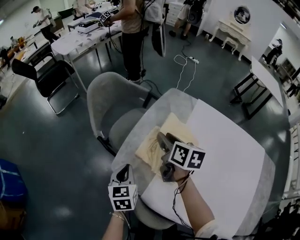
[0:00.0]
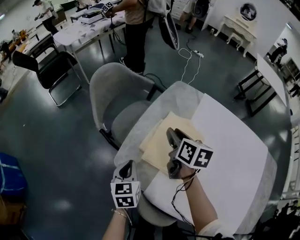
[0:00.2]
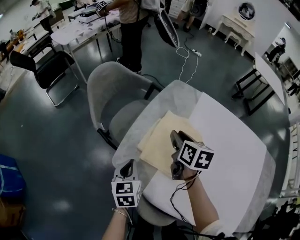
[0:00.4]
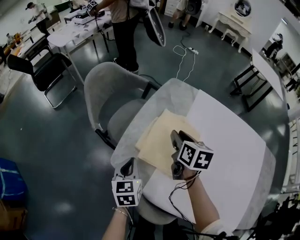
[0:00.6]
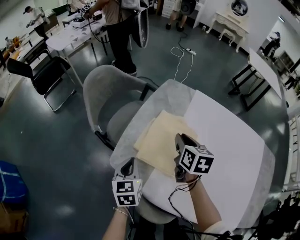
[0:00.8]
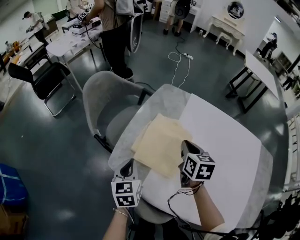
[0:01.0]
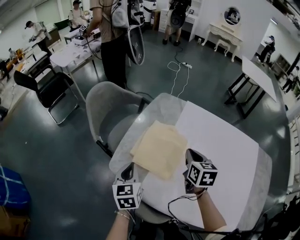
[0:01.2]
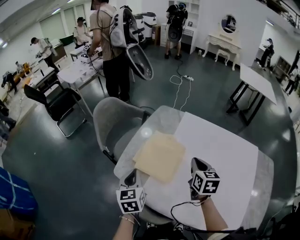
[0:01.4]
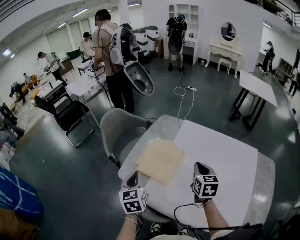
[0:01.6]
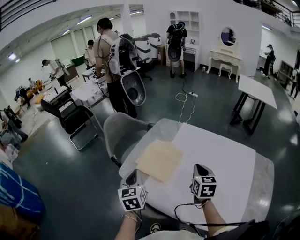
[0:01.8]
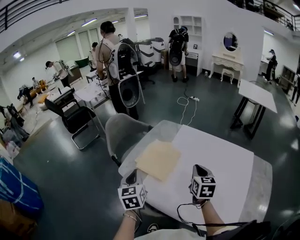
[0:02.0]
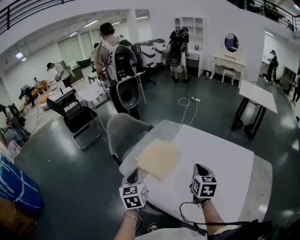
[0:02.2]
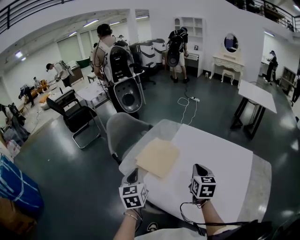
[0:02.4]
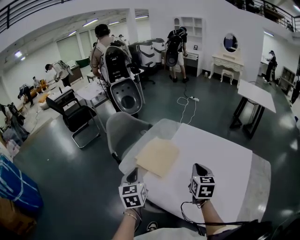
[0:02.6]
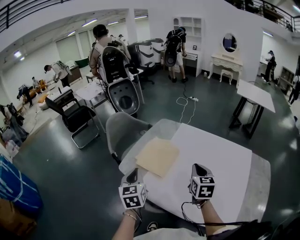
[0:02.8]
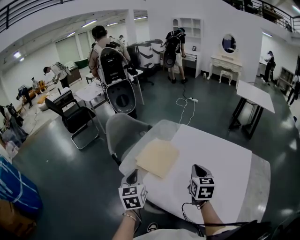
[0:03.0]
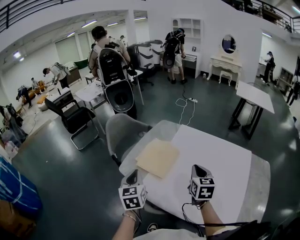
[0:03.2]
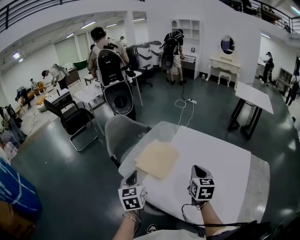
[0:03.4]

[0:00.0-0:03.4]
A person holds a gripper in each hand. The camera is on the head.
0:00.0 to 0:01.6: The left gripper goes some 20 cm upward, backward and to the right; the right gripper travels to the right, backward and upward by roughly 30 cm, swivels about 30 degrees, and closes up.
0:01.6 to 0:03.4: Both grippers travel together backward, some 10 cm.

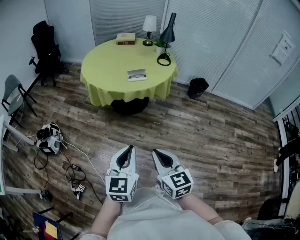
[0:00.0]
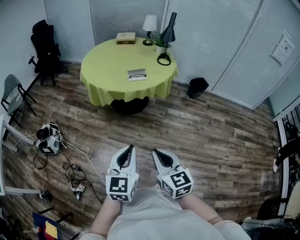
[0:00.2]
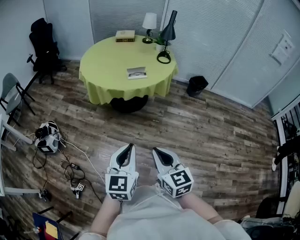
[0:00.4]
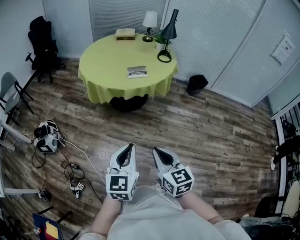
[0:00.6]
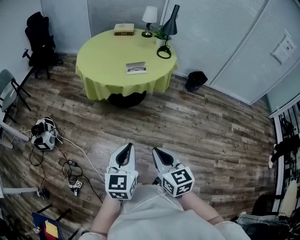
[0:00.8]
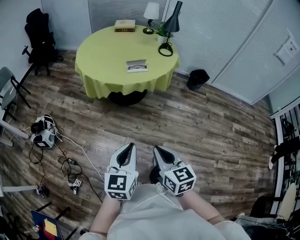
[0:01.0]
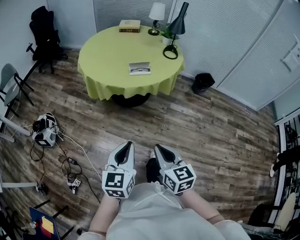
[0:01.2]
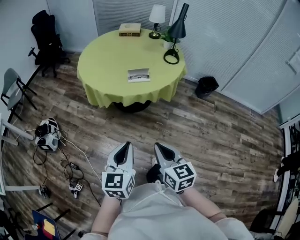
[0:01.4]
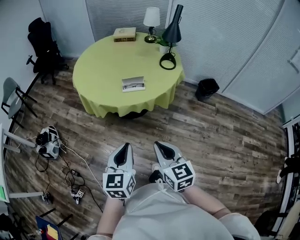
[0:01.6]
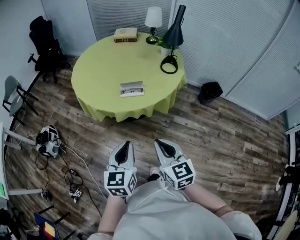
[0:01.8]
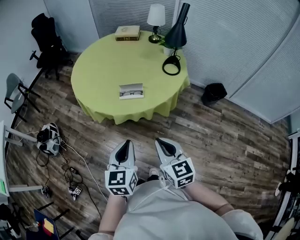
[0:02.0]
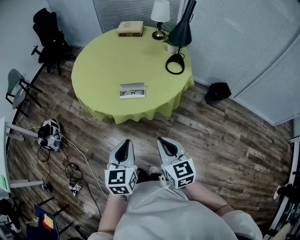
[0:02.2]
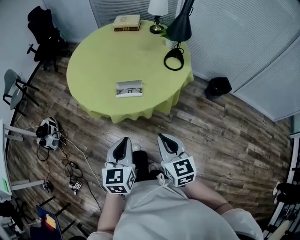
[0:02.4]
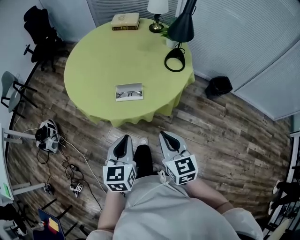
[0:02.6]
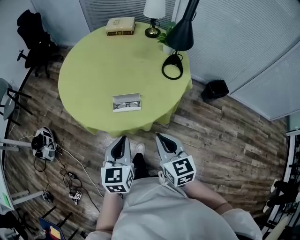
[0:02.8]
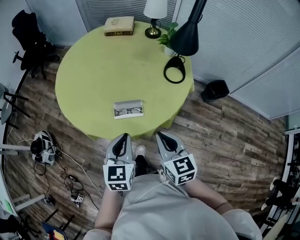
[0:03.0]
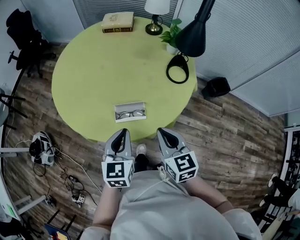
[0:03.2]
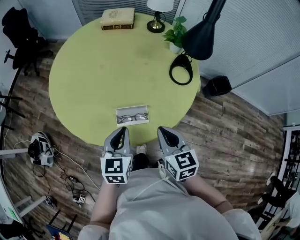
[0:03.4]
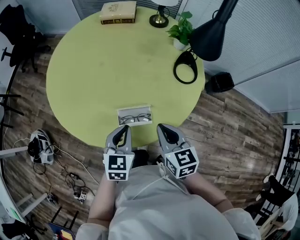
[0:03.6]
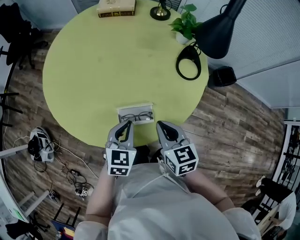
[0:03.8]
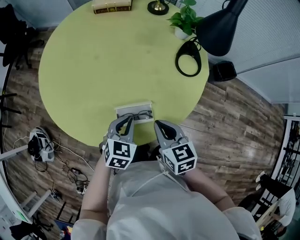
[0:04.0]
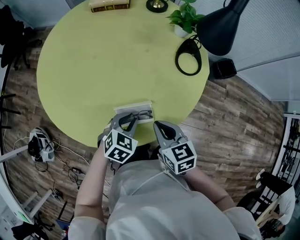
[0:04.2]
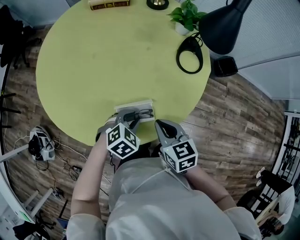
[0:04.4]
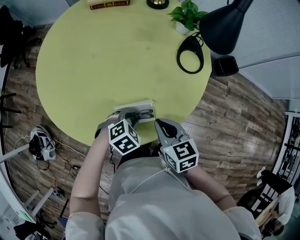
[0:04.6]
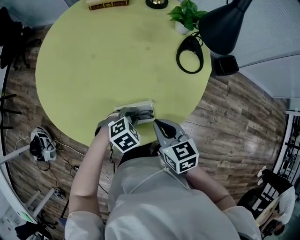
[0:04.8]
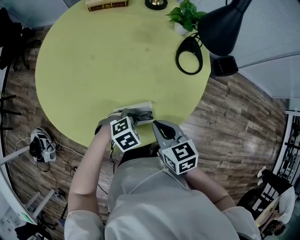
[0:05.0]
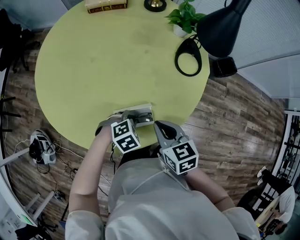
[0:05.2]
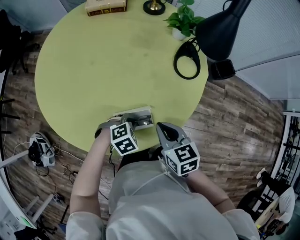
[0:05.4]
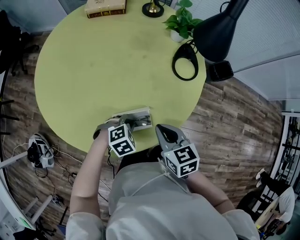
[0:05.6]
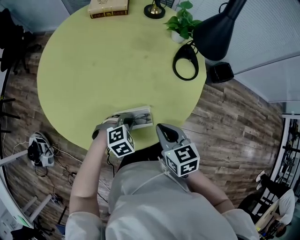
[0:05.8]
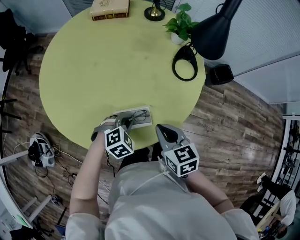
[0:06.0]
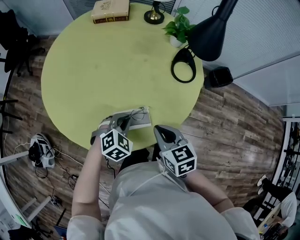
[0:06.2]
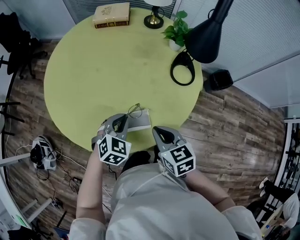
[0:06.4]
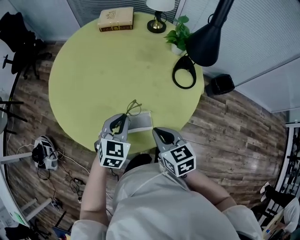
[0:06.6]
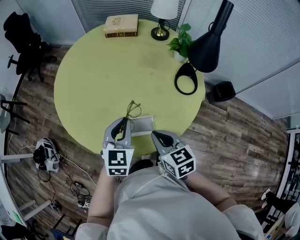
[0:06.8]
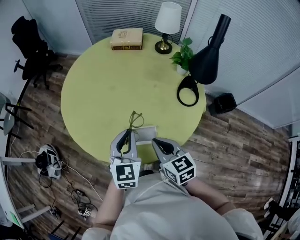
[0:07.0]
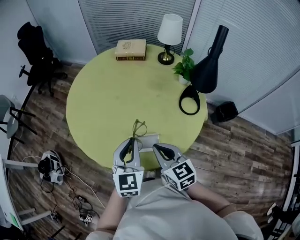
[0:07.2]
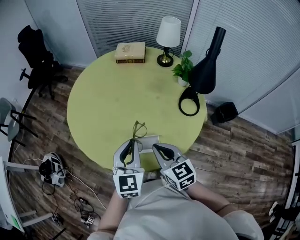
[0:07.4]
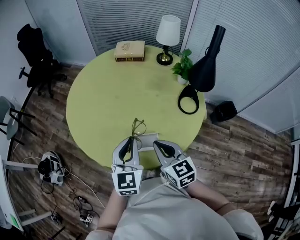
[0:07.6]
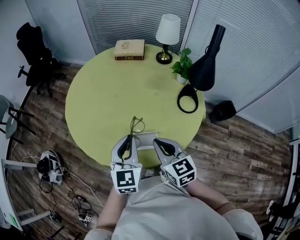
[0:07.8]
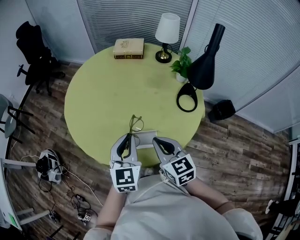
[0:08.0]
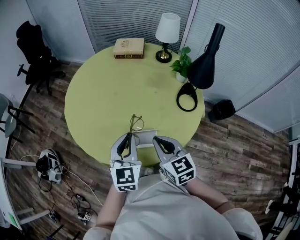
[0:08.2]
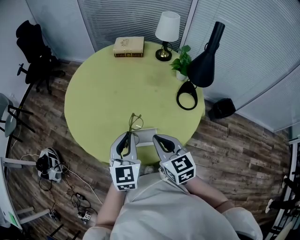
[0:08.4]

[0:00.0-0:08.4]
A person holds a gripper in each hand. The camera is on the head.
0:00.0 to 0:01.4: The two grippers go approximately 15 cm forward.
0:01.4 to 0:02.8: The grippers both shift forward and to the right by some 35 cm.
0:02.8 to 0:04.2: The two grippers go approximately 25 cm forward and downward. The left gripper rotates some 50 degrees.
0:04.2 to 0:05.6: The left gripper travels downward by approximately 5 cm, and turns by roughly 30 degrees.
0:05.6 to 0:07.0: The right gripper is displaced upward by some 10 cm. The left gripper travels upward by roughly 25 cm, and tips its fingers upward by approximately 50 degrees.
0:07.0 to 0:08.4: The grippers move only a little.

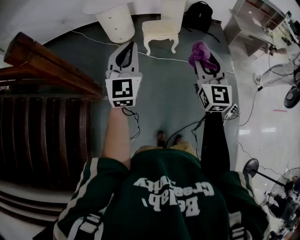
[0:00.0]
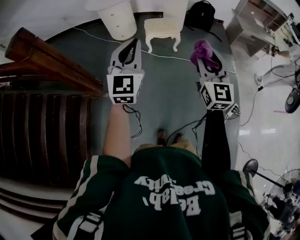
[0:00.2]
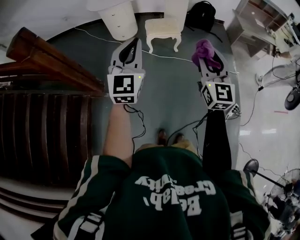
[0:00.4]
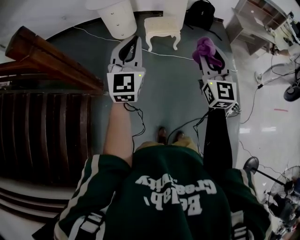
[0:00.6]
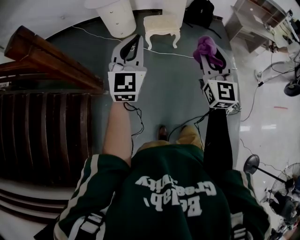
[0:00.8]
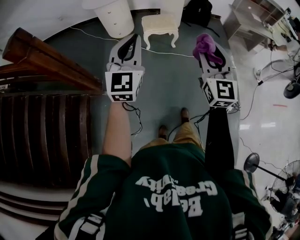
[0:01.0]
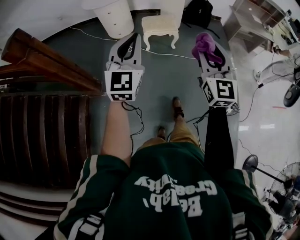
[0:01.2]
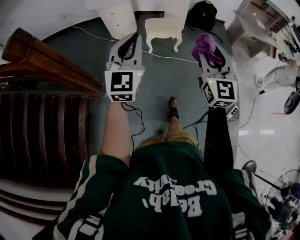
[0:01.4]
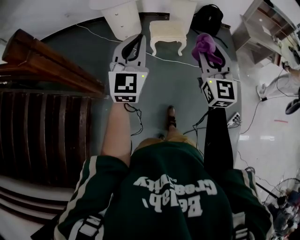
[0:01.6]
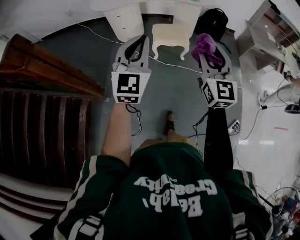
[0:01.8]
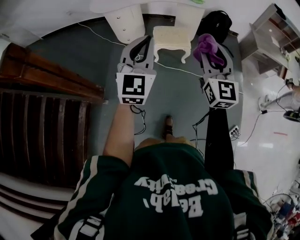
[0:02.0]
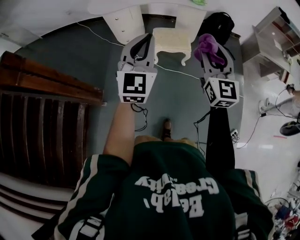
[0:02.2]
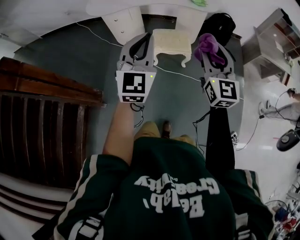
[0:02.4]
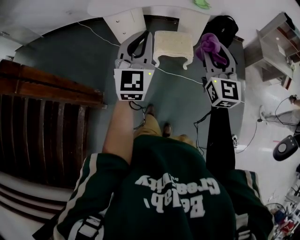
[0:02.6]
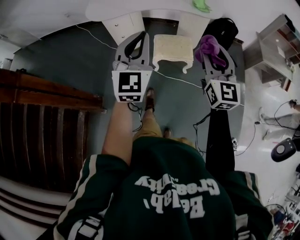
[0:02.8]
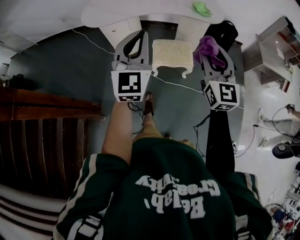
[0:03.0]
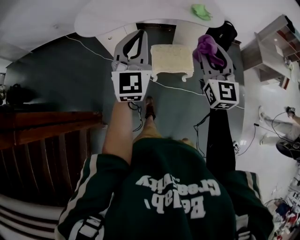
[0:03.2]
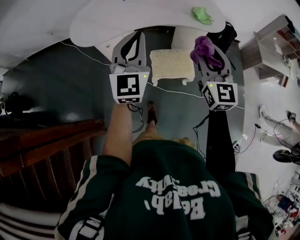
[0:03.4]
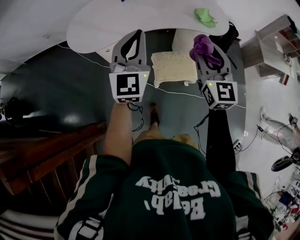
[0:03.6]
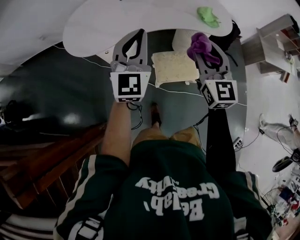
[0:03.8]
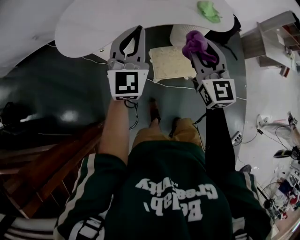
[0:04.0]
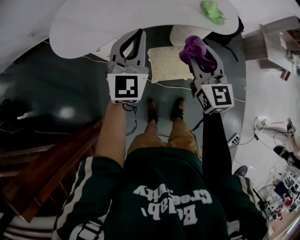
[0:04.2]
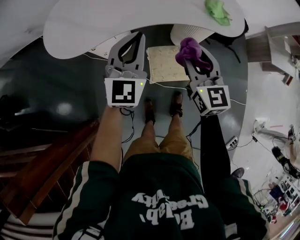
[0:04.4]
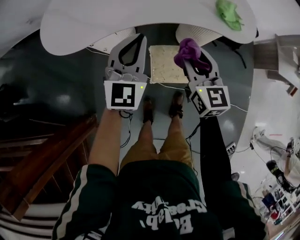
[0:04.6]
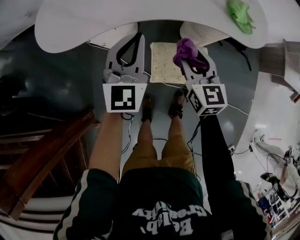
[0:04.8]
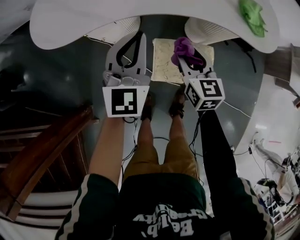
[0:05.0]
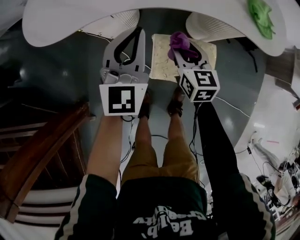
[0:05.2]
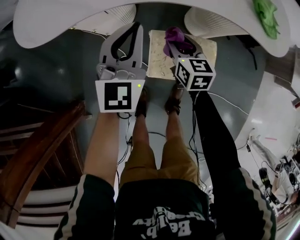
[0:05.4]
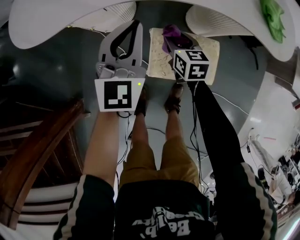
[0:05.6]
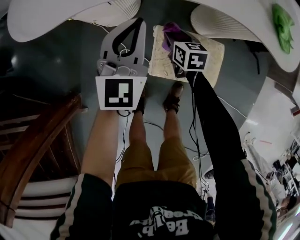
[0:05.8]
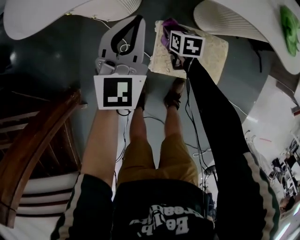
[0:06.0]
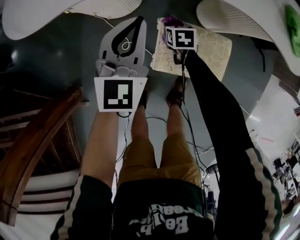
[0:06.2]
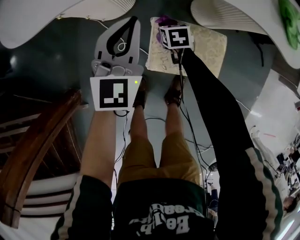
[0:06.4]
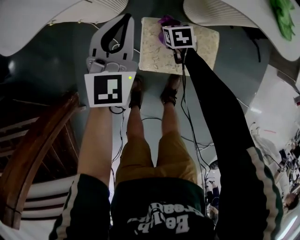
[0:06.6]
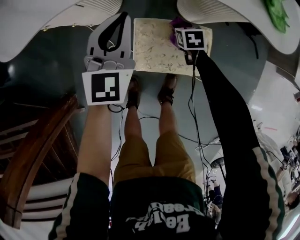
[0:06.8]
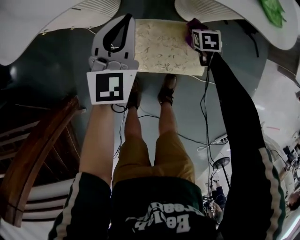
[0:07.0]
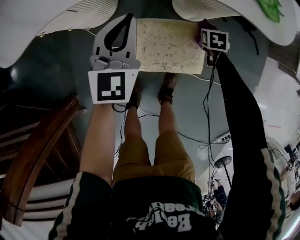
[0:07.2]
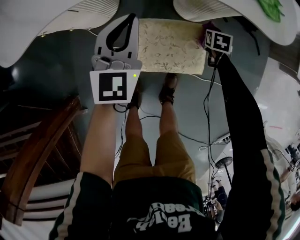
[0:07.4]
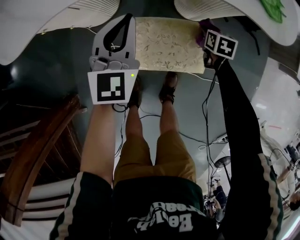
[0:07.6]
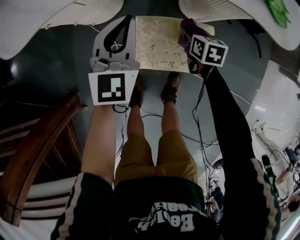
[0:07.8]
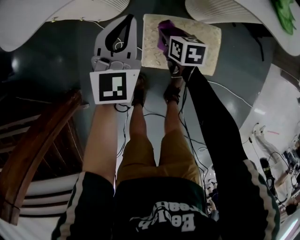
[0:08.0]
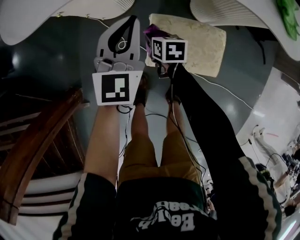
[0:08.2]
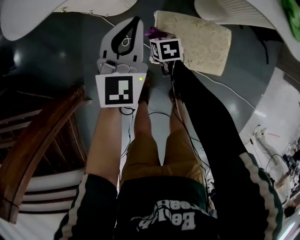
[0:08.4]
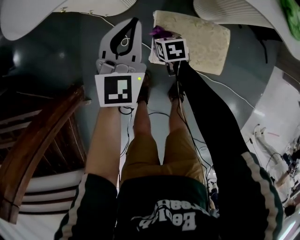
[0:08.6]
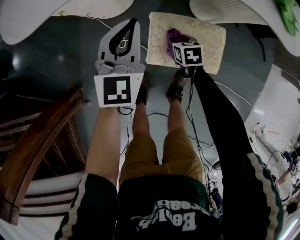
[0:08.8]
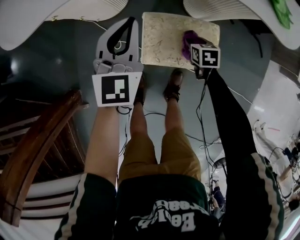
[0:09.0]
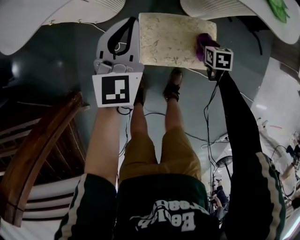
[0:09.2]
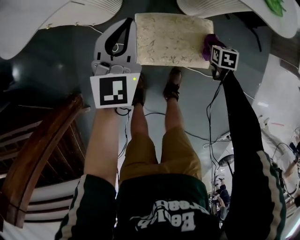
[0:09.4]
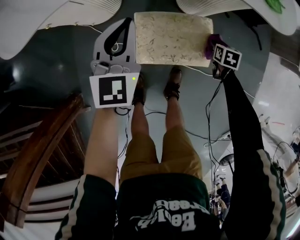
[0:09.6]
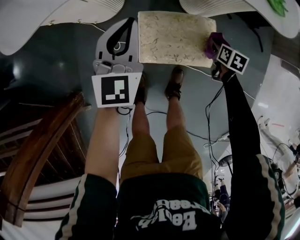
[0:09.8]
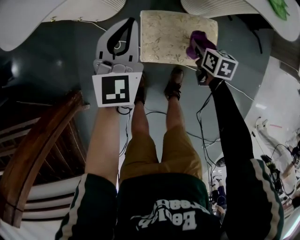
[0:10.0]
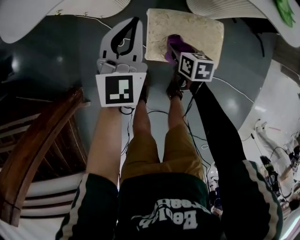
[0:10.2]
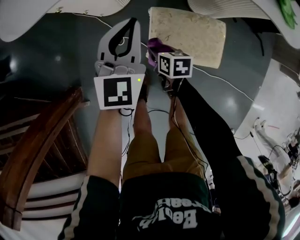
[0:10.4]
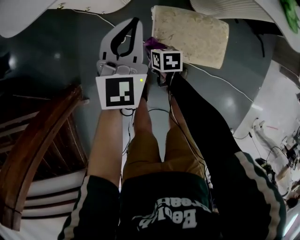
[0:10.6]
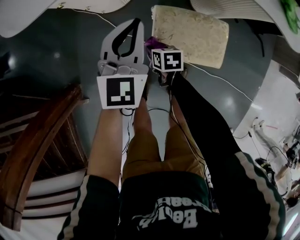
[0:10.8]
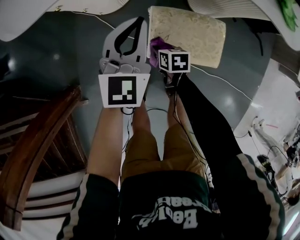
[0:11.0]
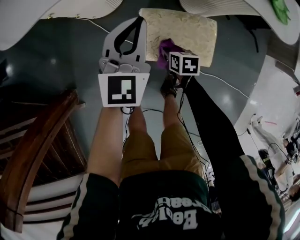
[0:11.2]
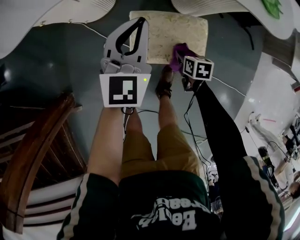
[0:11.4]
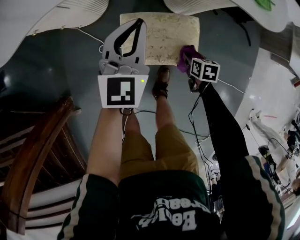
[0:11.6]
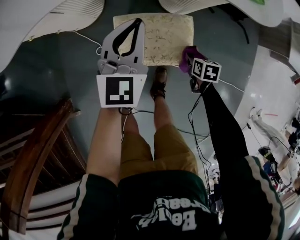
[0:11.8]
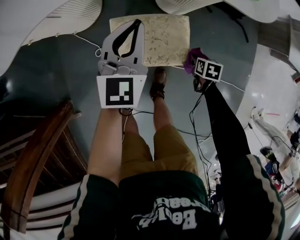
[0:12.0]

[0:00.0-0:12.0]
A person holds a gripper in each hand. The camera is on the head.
0:00.0 to 0:01.6: The two grippers go some 10 cm forward.
0:01.6 to 0:03.0: Both grippers move forward, about 35 cm.
0:03.0 to 0:04.4: The right gripper moves forward and downward, approximately 35 cm; the left gripper heads forward, covering approximately 35 cm.
0:04.4 to 0:06.0: The right gripper heads downward, covering about 50 cm, and angles its fingers downward, by some 40 degrees. The left gripper goes approximately 25 cm downward, and swivels roughly 20 degrees.
0:06.0 to 0:07.6: The right gripper moves to the right, some 25 cm; the left gripper goes about 10 cm to the right.
0:07.6 to 0:09.0: The right gripper goes roughly 15 cm to the left and backward. Meanwhile the left gripper moves to the left, about 5 cm.
0:09.0 to 0:10.4: The right gripper moves about 20 cm, and rotates some 20 degrees.
0:10.4 to 0:12.0: The left gripper moves to the right, some 15 cm. The right gripper travels to the right by some 35 cm, and turns by approximately 30 degrees.
